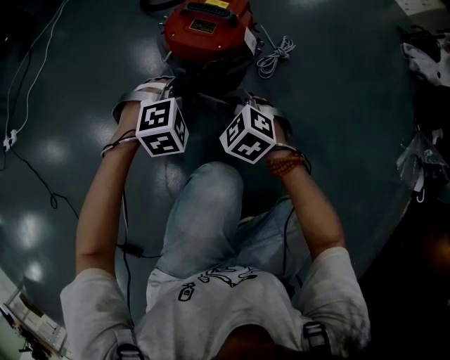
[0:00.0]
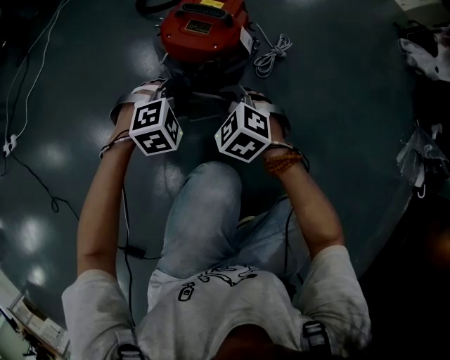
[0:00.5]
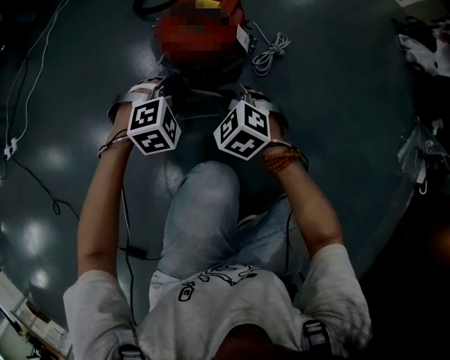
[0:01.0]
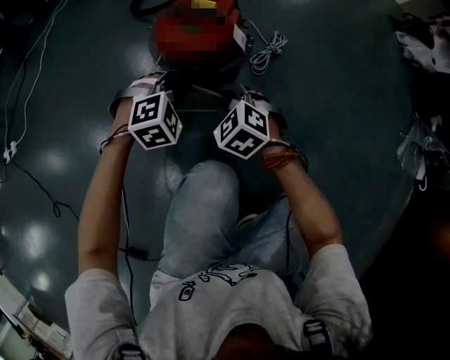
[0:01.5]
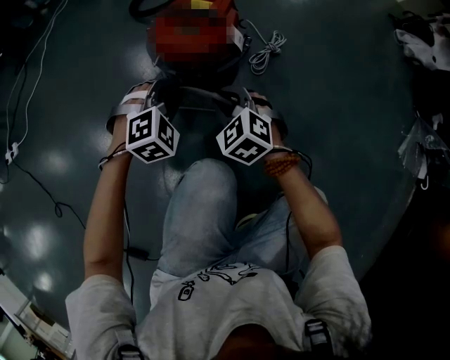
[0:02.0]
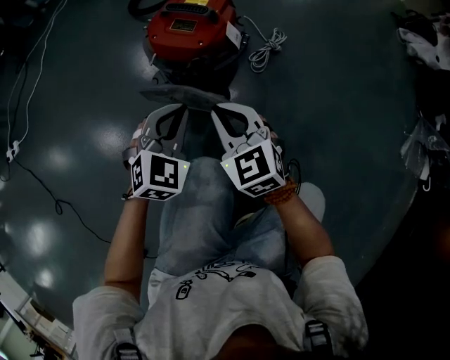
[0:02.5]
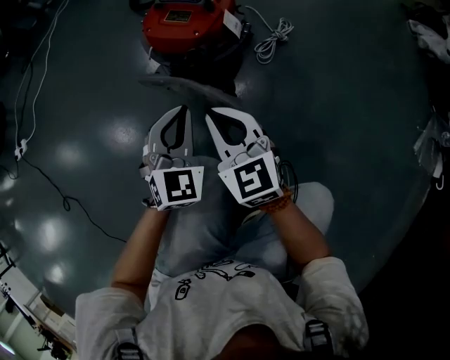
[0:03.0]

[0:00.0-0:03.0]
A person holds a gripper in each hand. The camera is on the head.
0:00.0 to 0:01.5: There are only small adjustments of the grippers.
0:01.5 to 0:03.0: The left gripper travels backward by roughly 10 cm, and rotates about 50 degrees. Meanwhile the right gripper shifts some 10 cm upward and backward, and angles its fingers upward, by approximately 30 degrees.

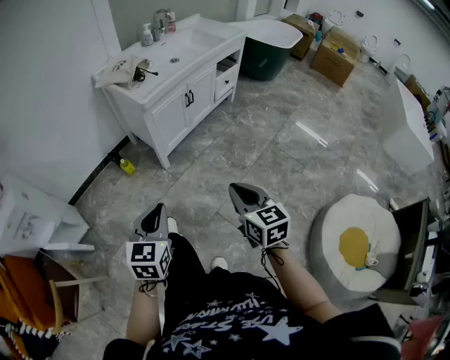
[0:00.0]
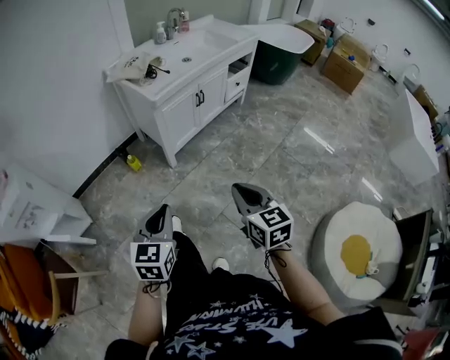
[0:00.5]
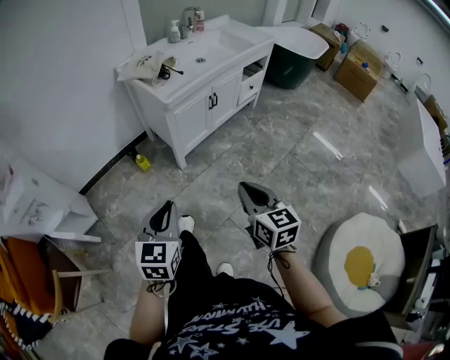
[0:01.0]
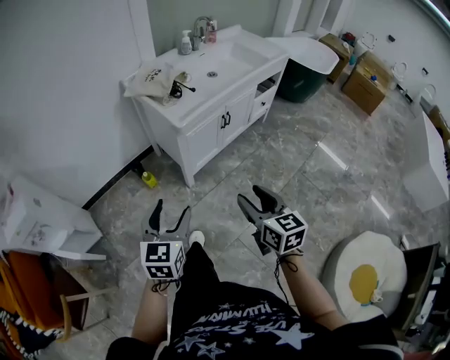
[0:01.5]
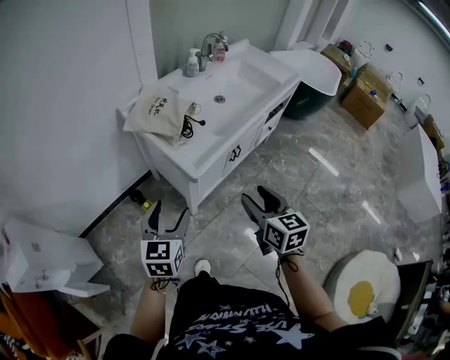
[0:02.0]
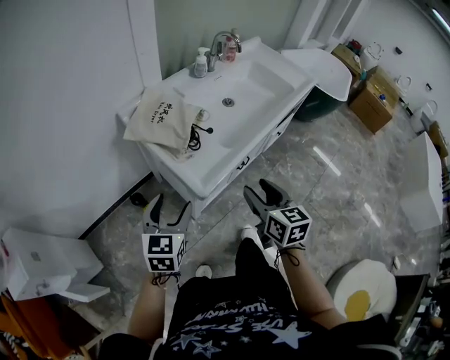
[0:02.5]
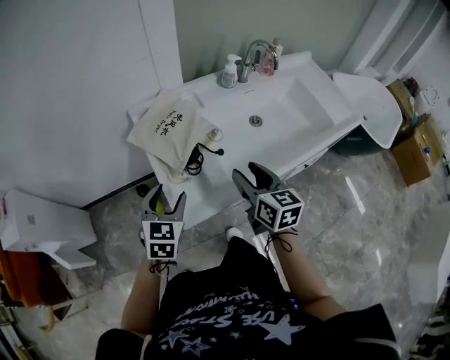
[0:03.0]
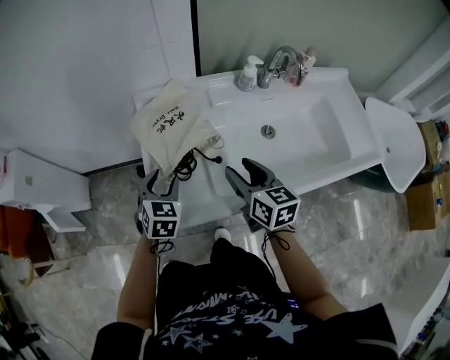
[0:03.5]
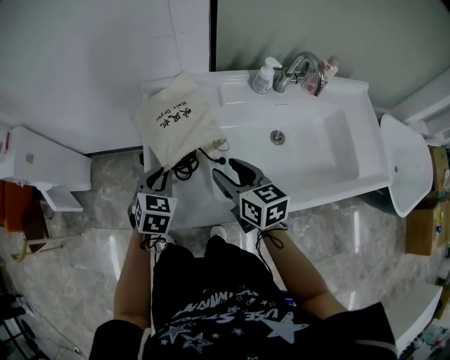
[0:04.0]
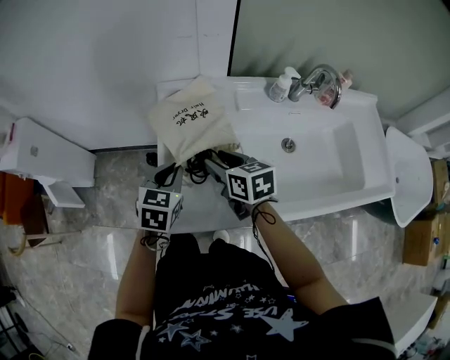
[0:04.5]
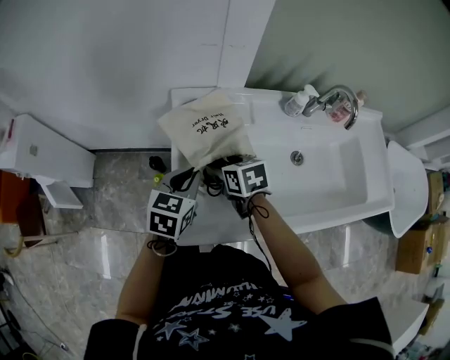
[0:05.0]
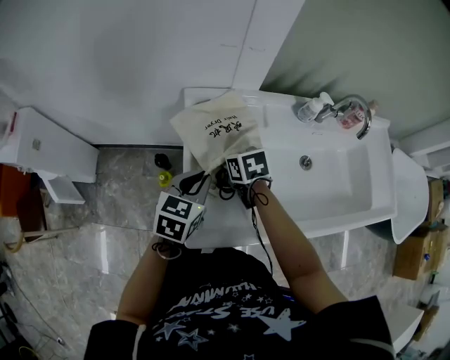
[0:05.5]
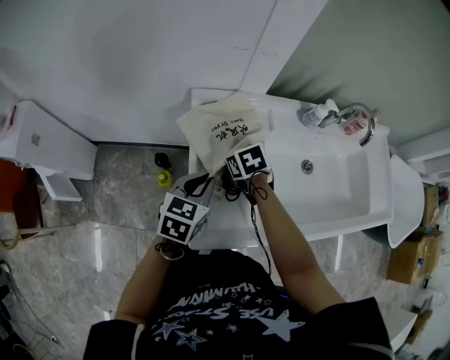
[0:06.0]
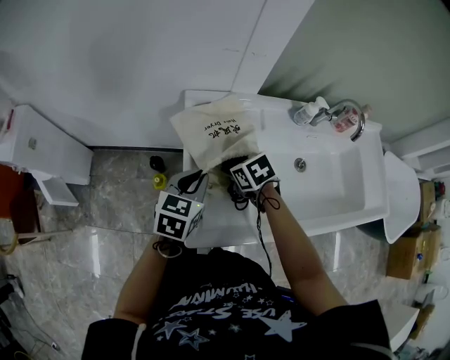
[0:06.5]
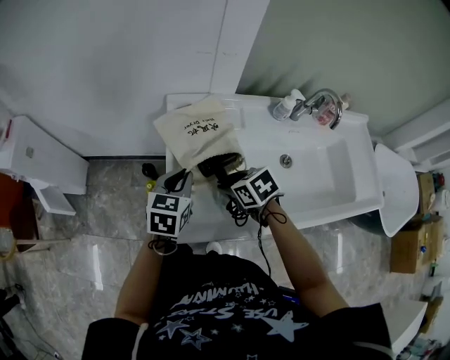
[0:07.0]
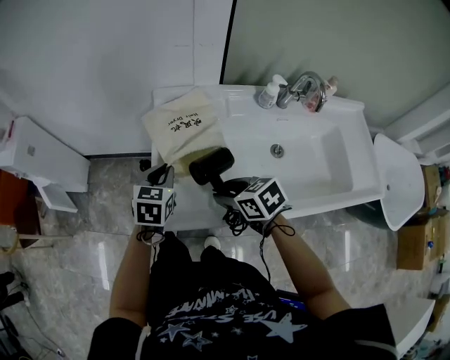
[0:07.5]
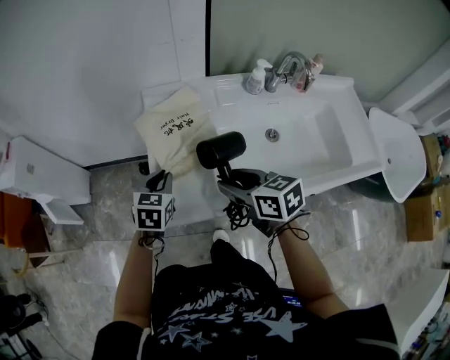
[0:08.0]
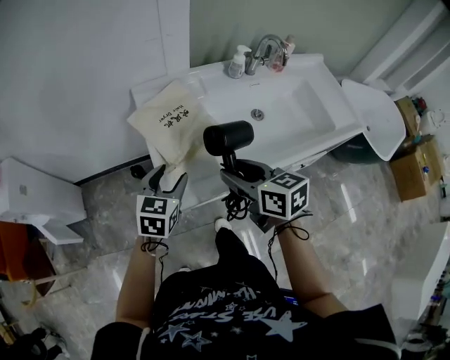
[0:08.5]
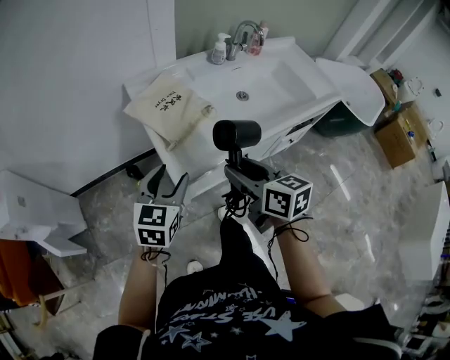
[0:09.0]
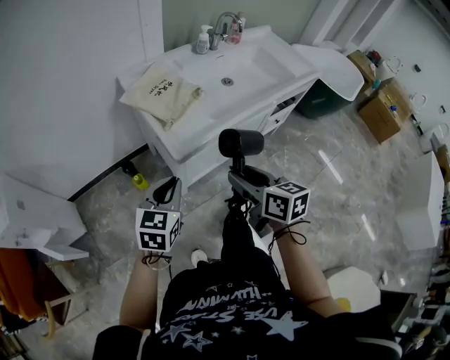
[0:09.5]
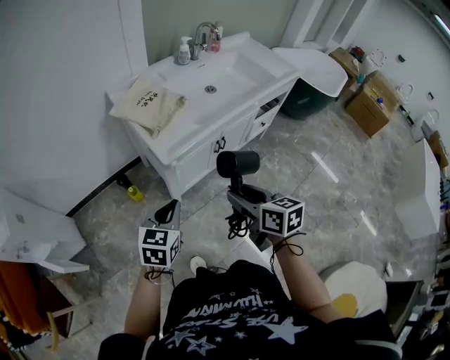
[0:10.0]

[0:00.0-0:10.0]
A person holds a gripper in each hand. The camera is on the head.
0:00.0 to 0:02.0: Both grippers are carried forward, about 40 cm. The left gripper opens. The right gripper opens up.
0:02.0 to 0:04.0: The left gripper changes place by approximately 35 cm, turns by roughly 40 degrees, and closes its fingers; the right gripper changes place by some 40 cm, and swivels approximately 50 degrees.
0:04.0 to 0:06.0: The left gripper ends up roughly 5 cm from where it was, and changes its angle by approximately 30 degrees, while the right gripper travels forward, to the left and downward by approximately 20 cm, and angles its fingers downward, by some 40 degrees.
0:06.0 to 0:08.0: The left gripper goes about 5 cm backward. Meanwhile the right gripper goes about 25 cm backward and upward, and tips its fingers upward by some 30 degrees.
0:08.0 to 0:10.0: The right gripper moves roughly 35 cm, and changes its angle by about 50 degrees, while the left gripper ends up some 35 cm from where it was, swivels some 40 degrees, and opens and closes again.

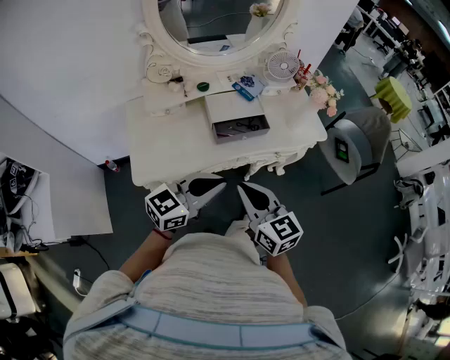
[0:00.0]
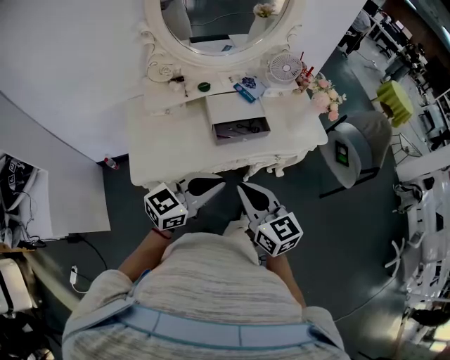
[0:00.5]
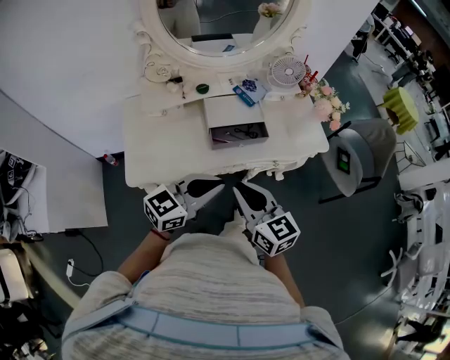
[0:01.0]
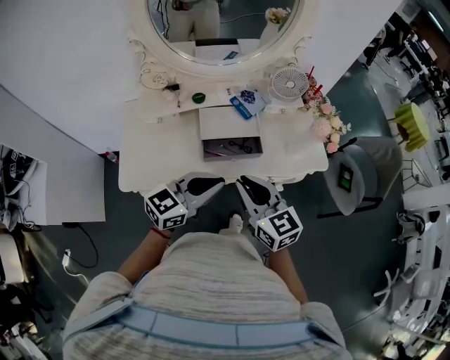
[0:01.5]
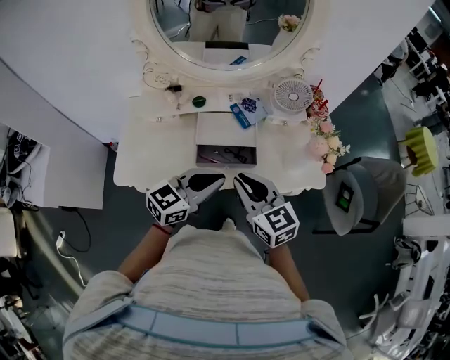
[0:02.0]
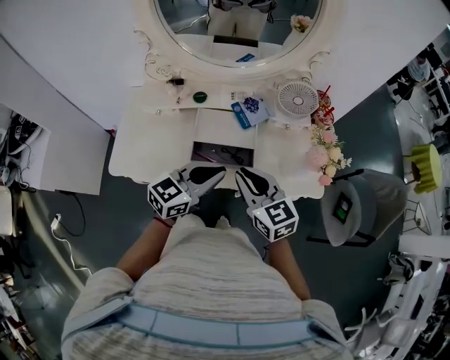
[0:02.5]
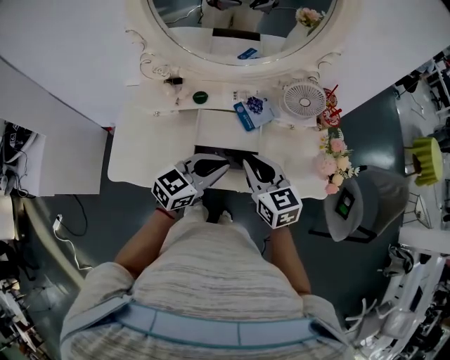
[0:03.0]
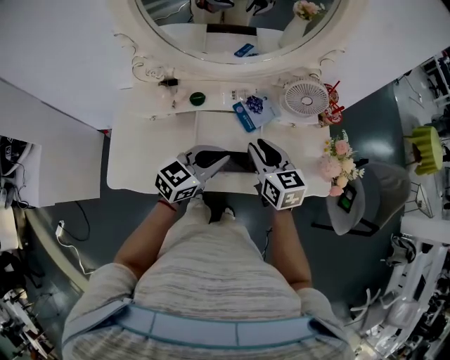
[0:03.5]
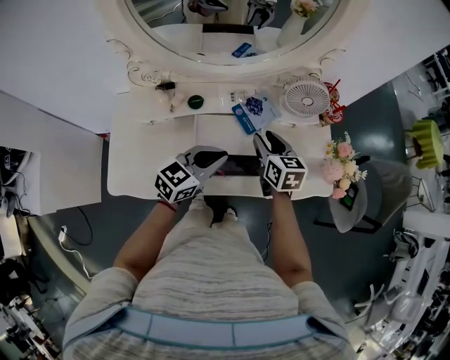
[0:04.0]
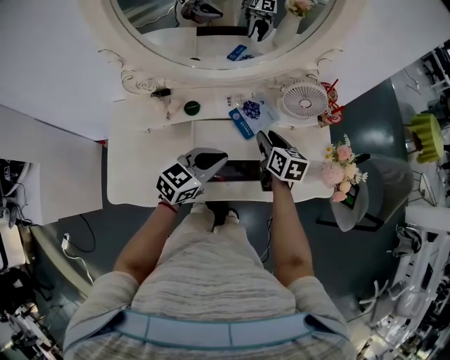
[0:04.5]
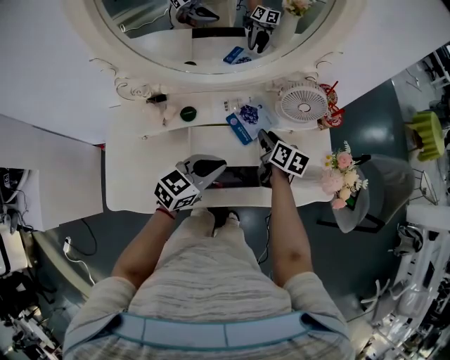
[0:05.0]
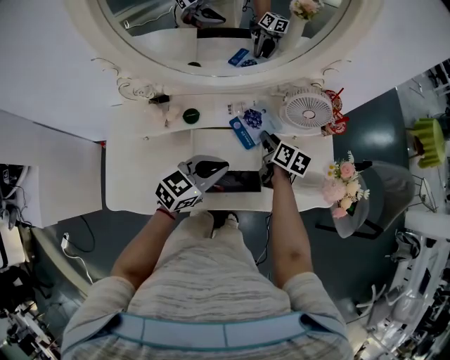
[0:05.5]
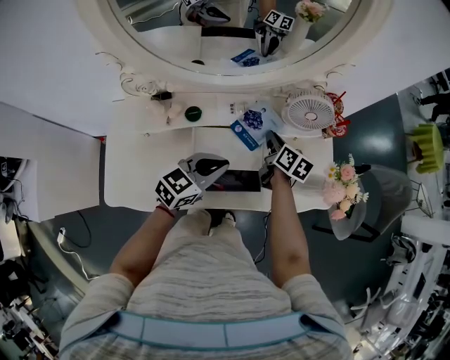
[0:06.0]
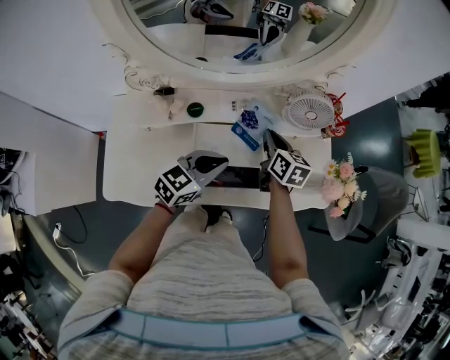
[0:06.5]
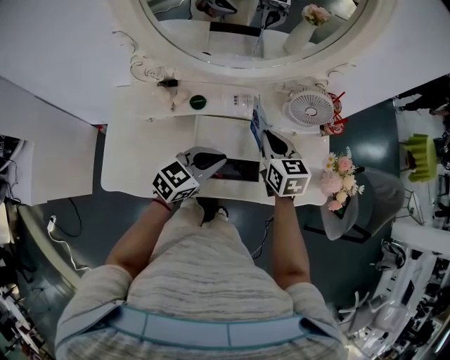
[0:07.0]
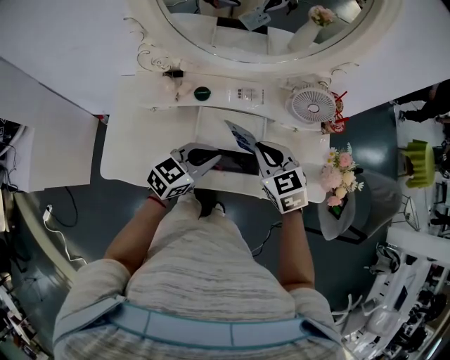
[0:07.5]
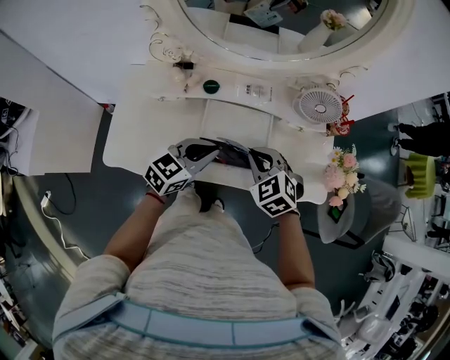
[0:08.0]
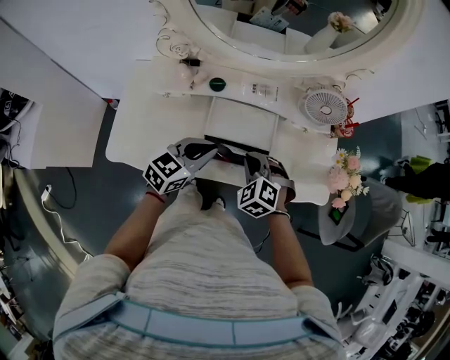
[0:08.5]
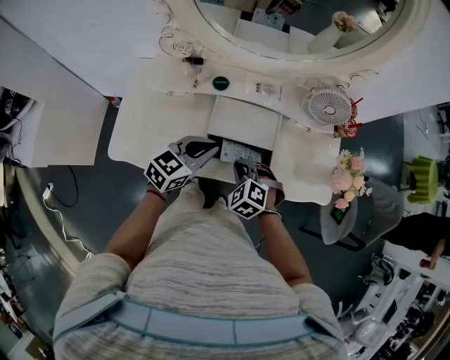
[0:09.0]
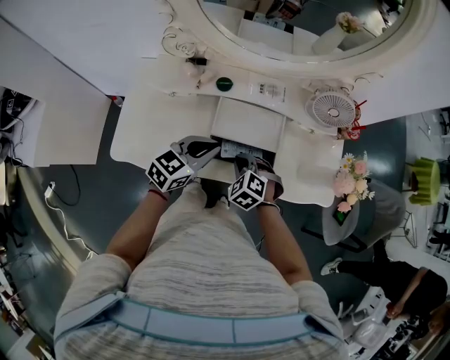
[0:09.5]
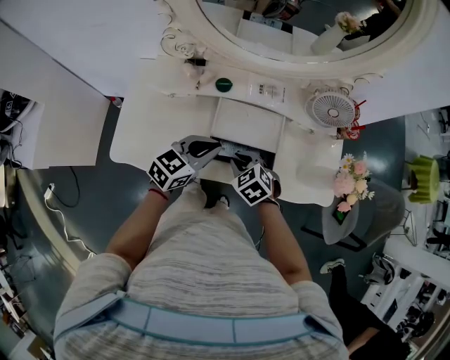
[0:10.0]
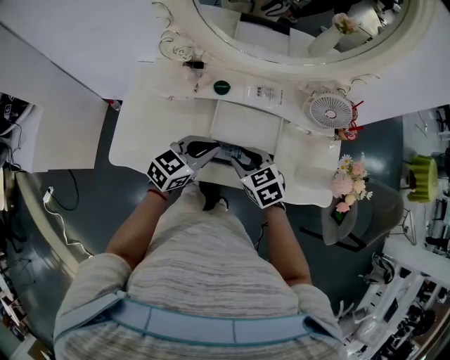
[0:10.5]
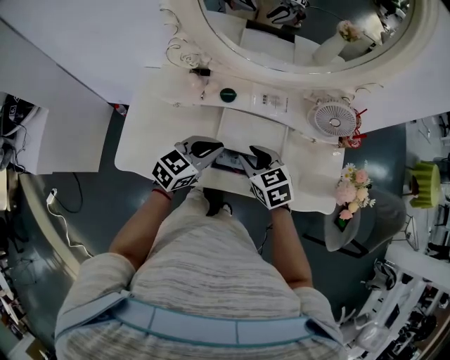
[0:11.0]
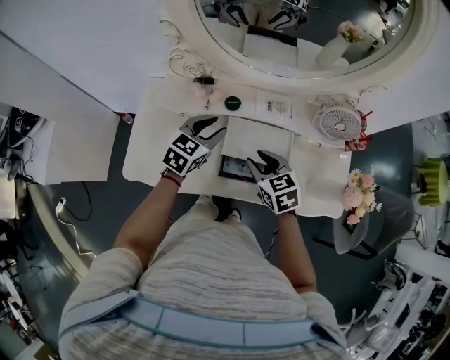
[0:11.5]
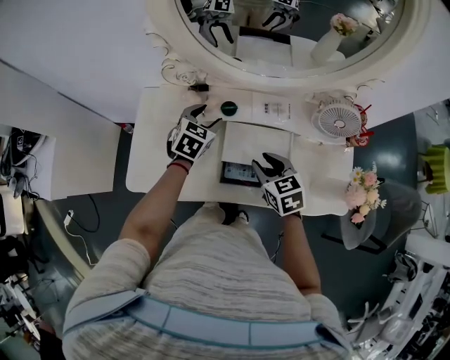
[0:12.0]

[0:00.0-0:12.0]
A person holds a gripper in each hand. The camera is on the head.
0:00.0 to 0:02.0: Both grippers travel together forward and to the right, about 20 cm. The right gripper changes its angle by some 20 degrees.
0:02.0 to 0:04.0: The left gripper travels forward and downward by roughly 15 cm; the right gripper shifts roughly 25 cm forward and downward, changes its angle by some 30 degrees, and opens up.
0:04.0 to 0:06.0: The right gripper travels forward and downward by approximately 10 cm, swivels some 30 degrees, and closes up.
0:06.0 to 0:08.0: The right gripper is displaced backward and upward by roughly 20 cm, and rolls counterclockwise, seen from behind, by some 80 degrees. Meanwhile the left gripper moves backward, approximately 5 cm.
0:08.0 to 0:10.0: The right gripper moves downward and to the left, about 10 cm.
0:10.0 to 0:12.0: The right gripper moves upward and forward, approximately 10 cm, changes its angle by about 30 degrees, and opens its fingers; the left gripper is displaced forward and to the left by roughly 20 cm, turns by roughly 30 degrees, and opens.

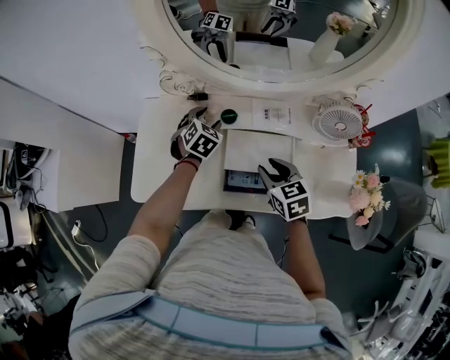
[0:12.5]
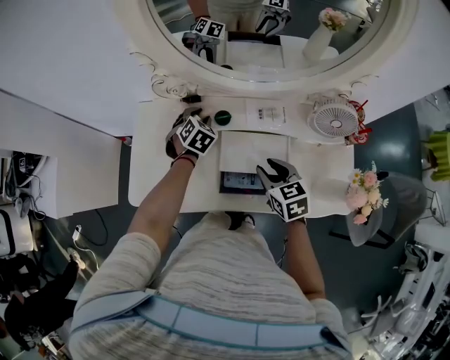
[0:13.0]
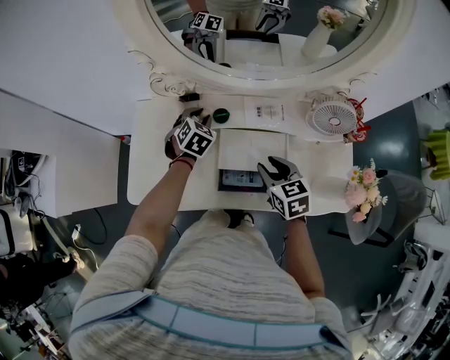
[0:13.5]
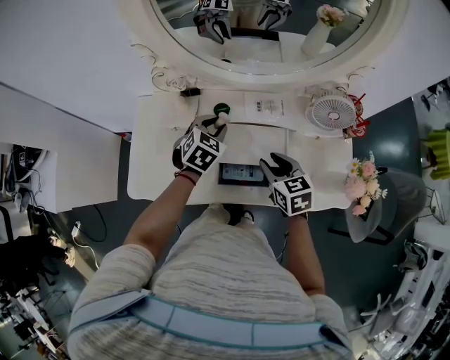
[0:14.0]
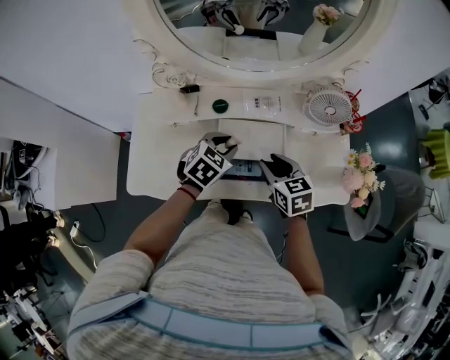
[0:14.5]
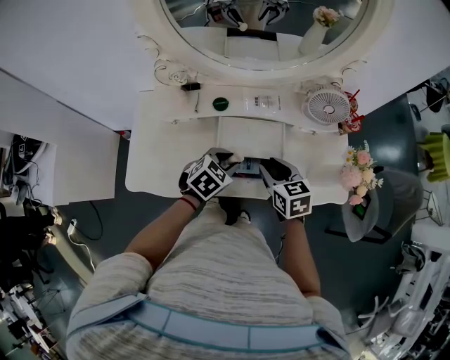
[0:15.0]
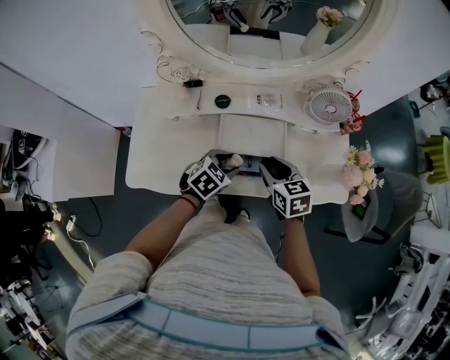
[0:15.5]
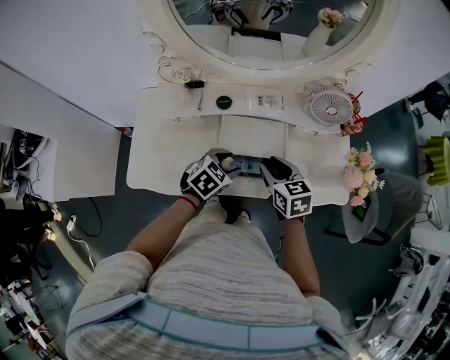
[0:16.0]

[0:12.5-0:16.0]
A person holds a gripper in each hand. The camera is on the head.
0:12.5 to 0:14.5: The left gripper moves backward and to the right, approximately 15 cm, changes its angle by roughly 20 degrees, and closes up.
0:14.5 to 0:16.0: The left gripper travels backward by some 5 cm, and opens its fingers.
